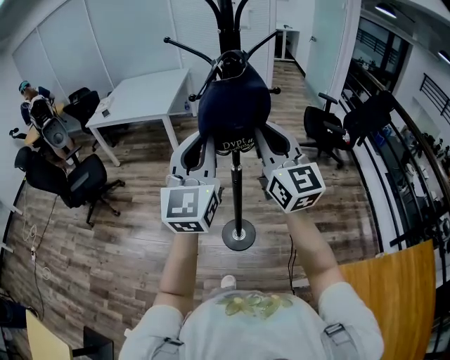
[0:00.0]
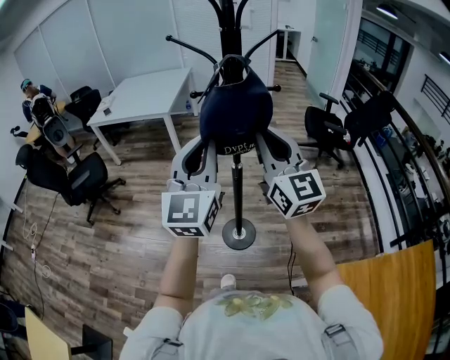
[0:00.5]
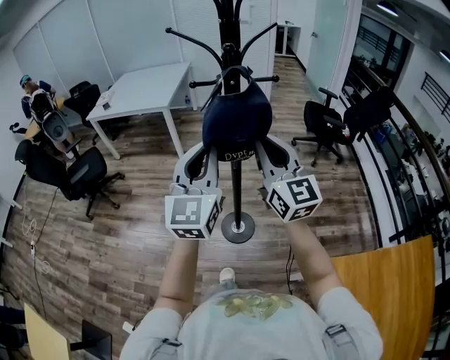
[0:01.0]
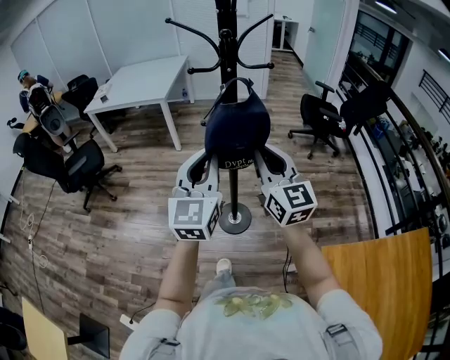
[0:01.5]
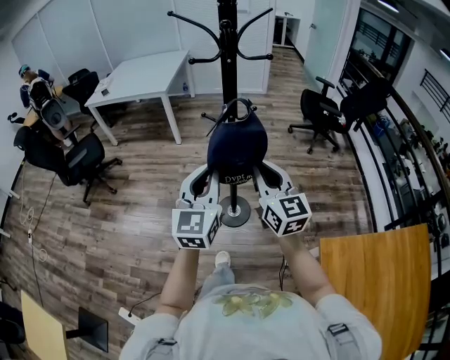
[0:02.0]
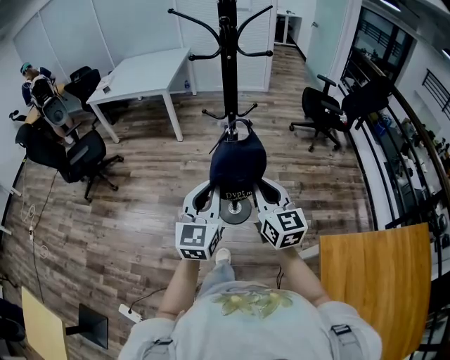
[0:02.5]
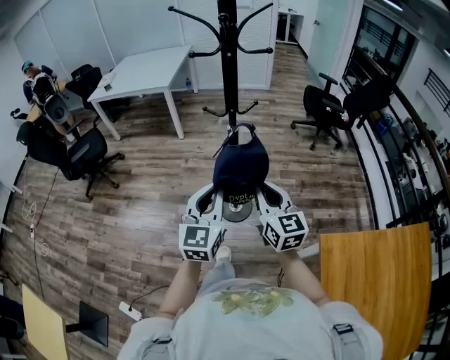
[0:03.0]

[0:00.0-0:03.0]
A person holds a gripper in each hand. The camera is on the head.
0:00.0 to 0:01.5: The two grippers go roughly 15 cm downward and backward.
0:01.5 to 0:03.0: Both grippers move downward and backward, approximately 15 cm.

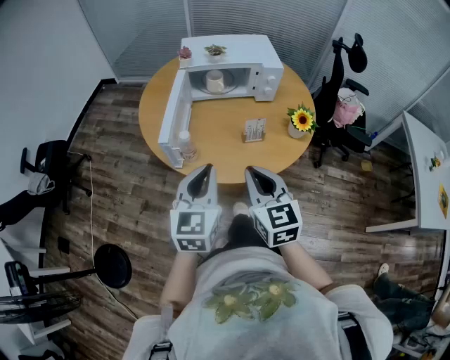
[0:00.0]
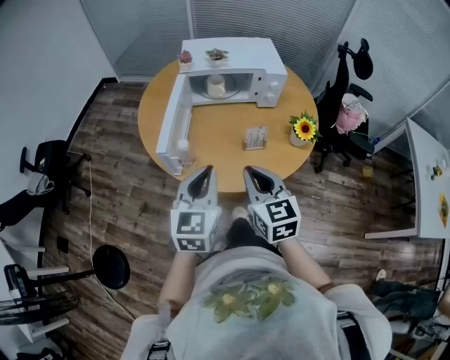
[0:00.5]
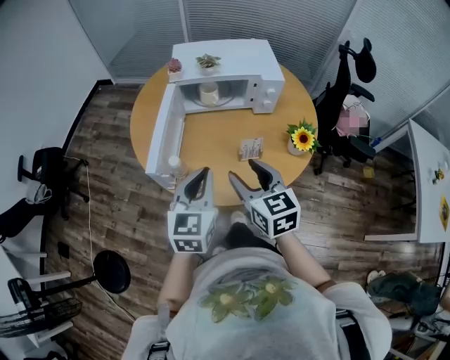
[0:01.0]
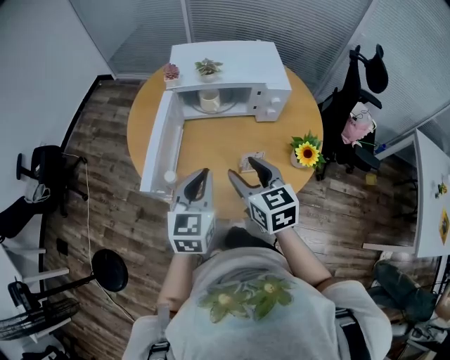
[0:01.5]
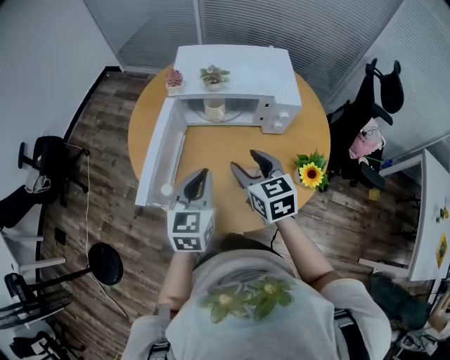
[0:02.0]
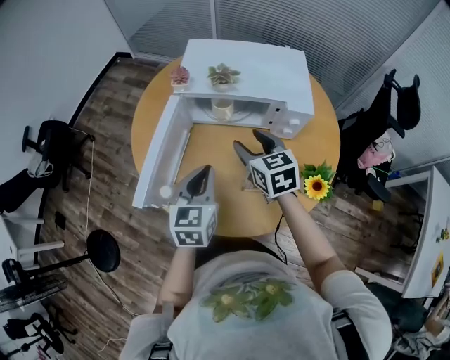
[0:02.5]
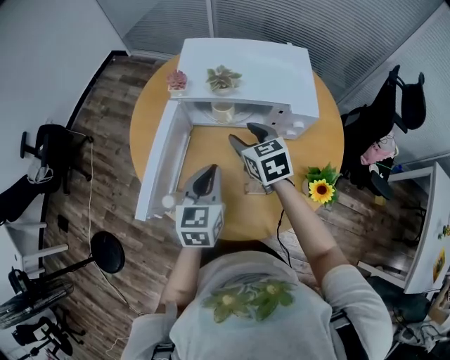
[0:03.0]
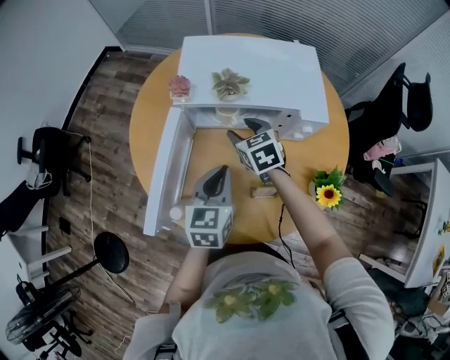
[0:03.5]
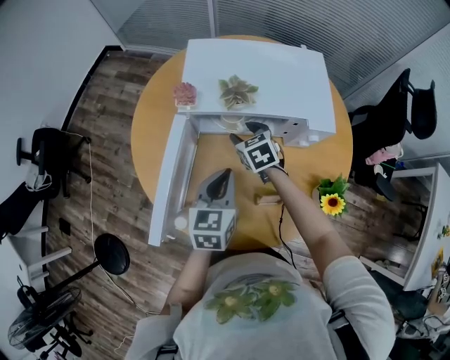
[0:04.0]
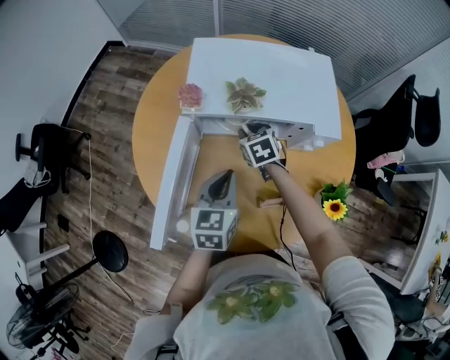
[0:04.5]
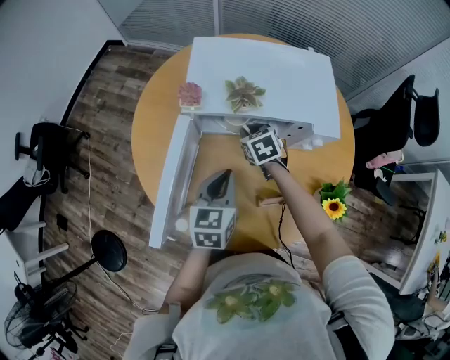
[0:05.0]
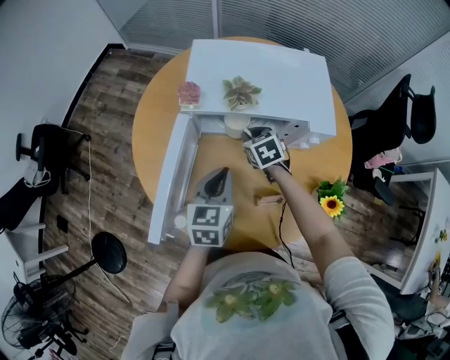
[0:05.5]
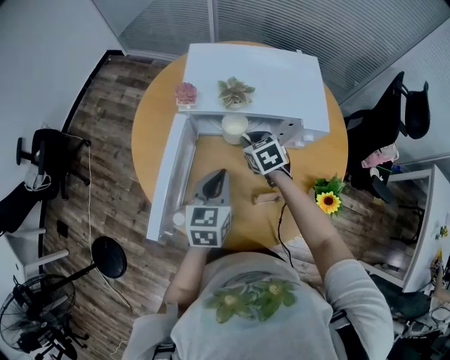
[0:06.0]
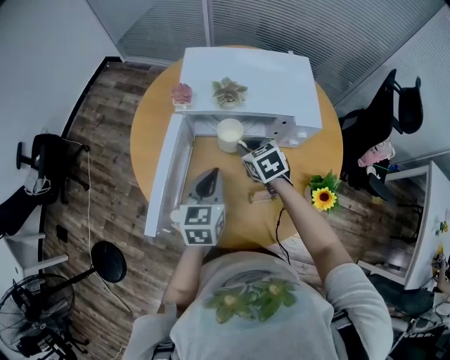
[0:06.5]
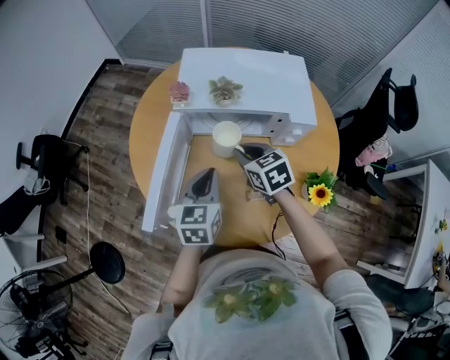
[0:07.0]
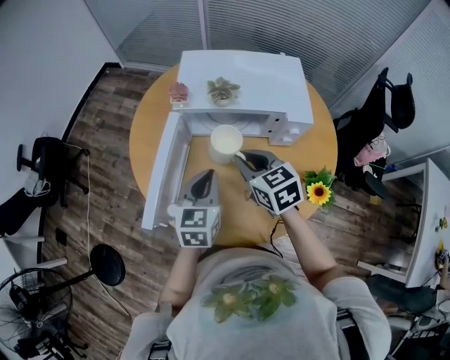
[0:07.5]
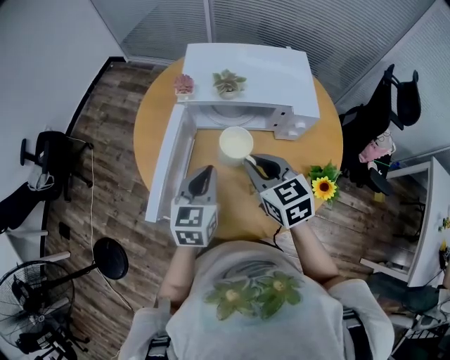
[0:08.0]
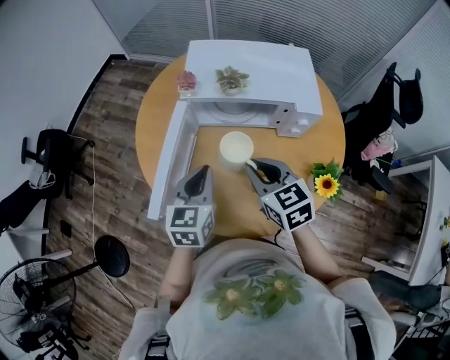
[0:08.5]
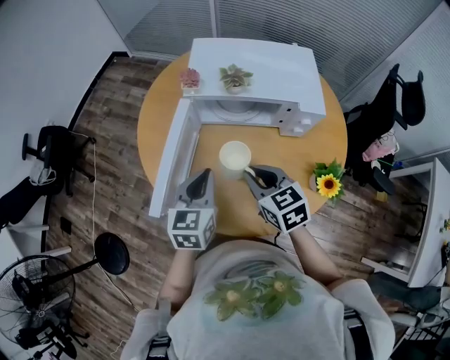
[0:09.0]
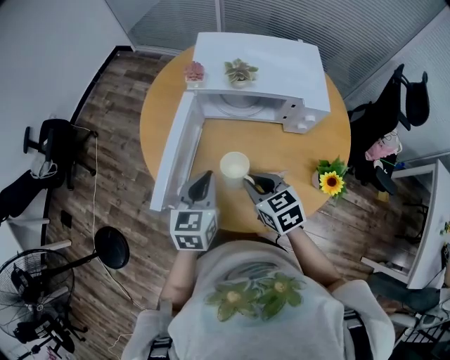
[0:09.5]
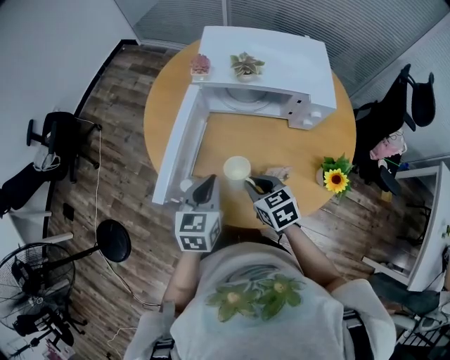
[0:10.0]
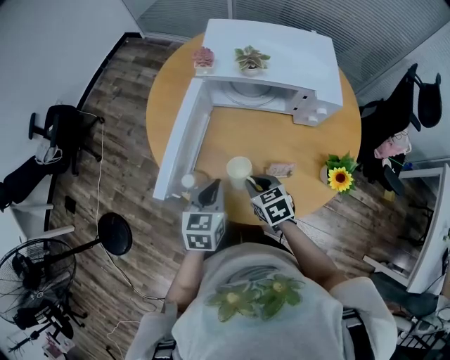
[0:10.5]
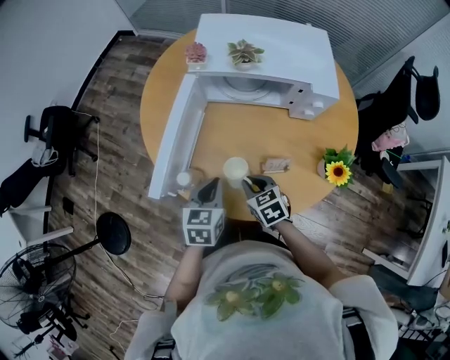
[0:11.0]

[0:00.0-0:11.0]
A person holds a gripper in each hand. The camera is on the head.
0:00.0 to 0:02.0: Both grippers travel together forward, approximately 25 cm. The right gripper opens.
0:02.0 to 0:03.5: The right gripper travels forward and downward by about 20 cm, while the left gripper shifts approximately 10 cm forward.
0:03.5 to 0:05.5: The right gripper travels downward by some 5 cm, and closes.
0:05.5 to 0:07.5: The right gripper moves upward and backward, roughly 20 cm, while the left gripper ends up roughly 5 cm from where it was.
0:07.5 to 0:09.0: The right gripper heads backward, covering about 5 cm.
0:09.0 to 0:11.0: The right gripper is displaced downward by about 15 cm. The left gripper moves downward and backward, roughly 10 cm.

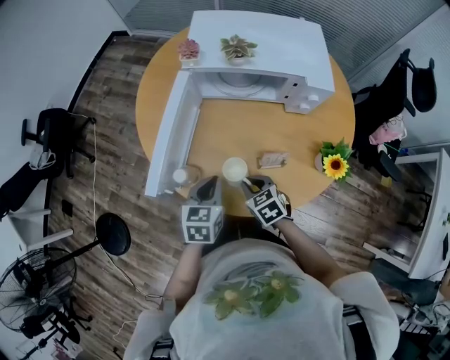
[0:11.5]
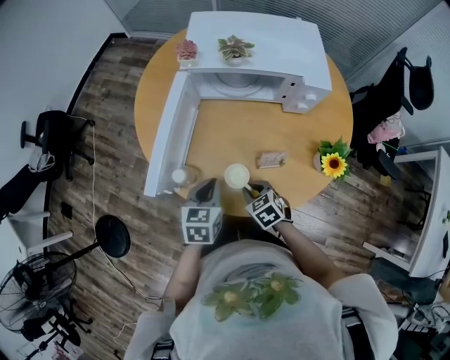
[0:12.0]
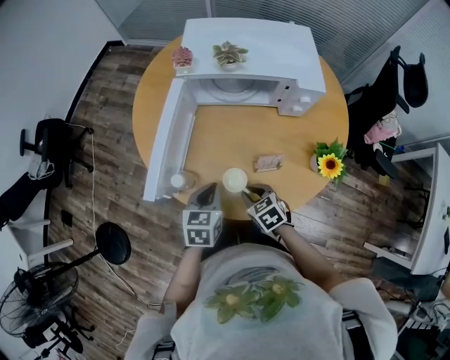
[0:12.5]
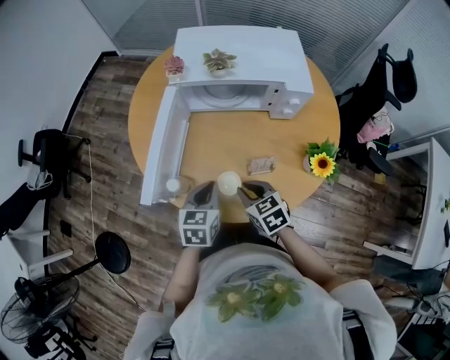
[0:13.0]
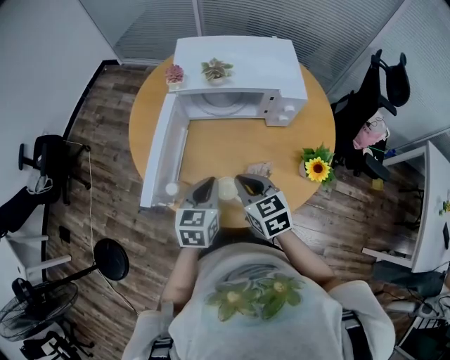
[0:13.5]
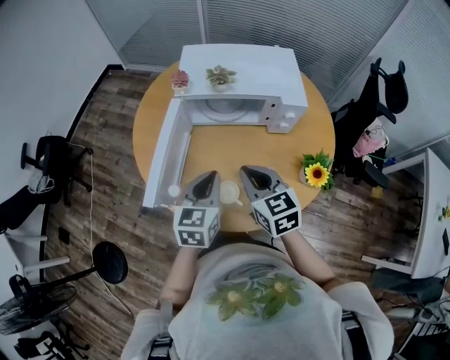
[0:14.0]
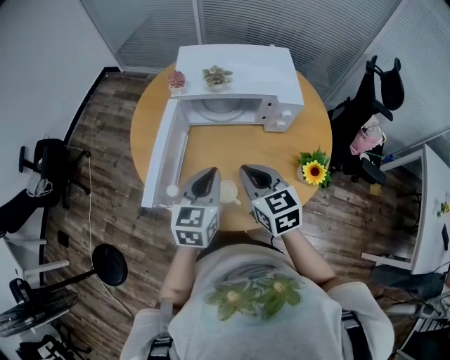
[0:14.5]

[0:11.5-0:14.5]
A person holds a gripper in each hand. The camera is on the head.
0:11.5 to 0:13.0: The right gripper shifts some 5 cm upward.
0:13.0 to 0:14.5: Both grippers move upward, some 15 cm. The right gripper turns by some 20 degrees.

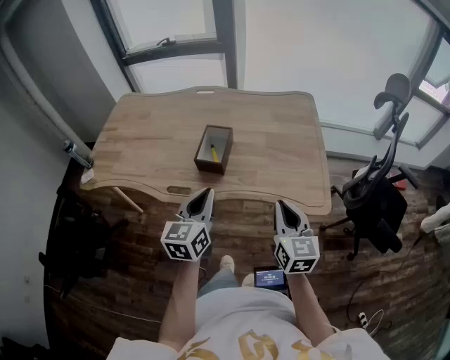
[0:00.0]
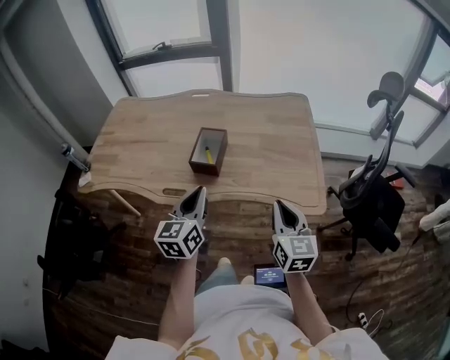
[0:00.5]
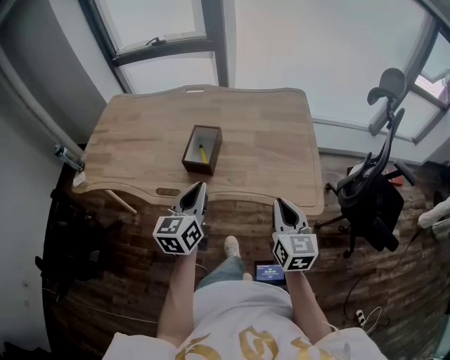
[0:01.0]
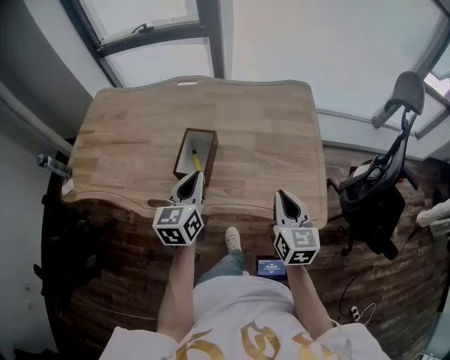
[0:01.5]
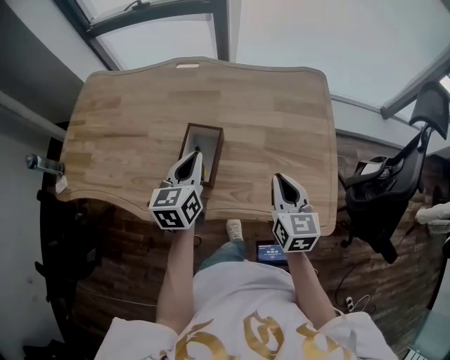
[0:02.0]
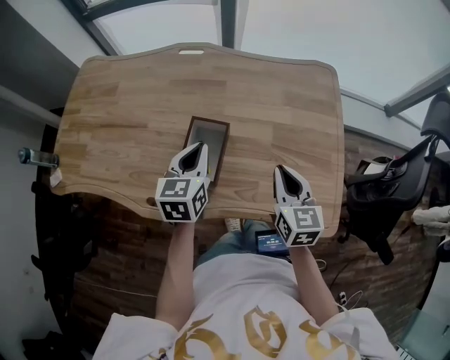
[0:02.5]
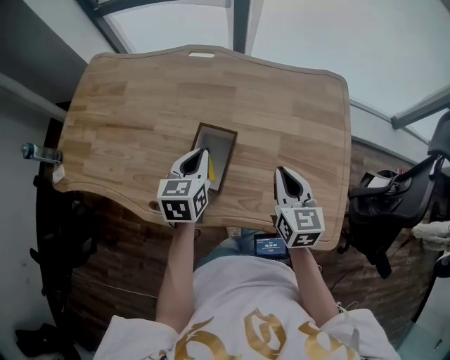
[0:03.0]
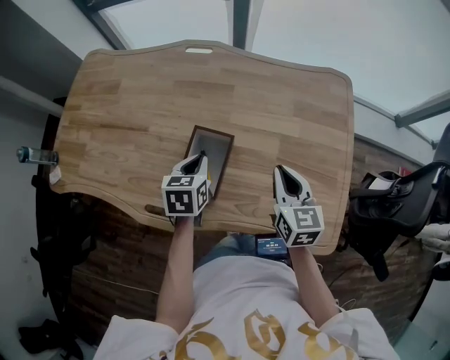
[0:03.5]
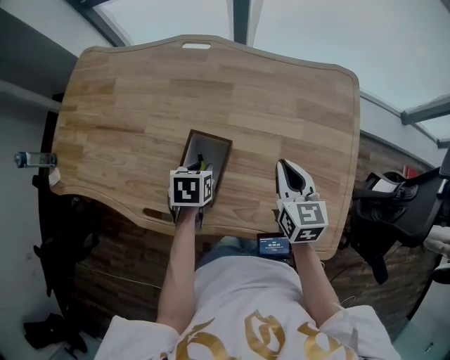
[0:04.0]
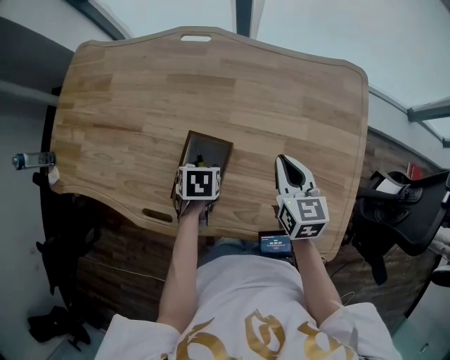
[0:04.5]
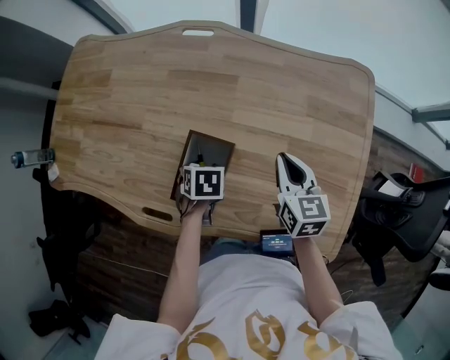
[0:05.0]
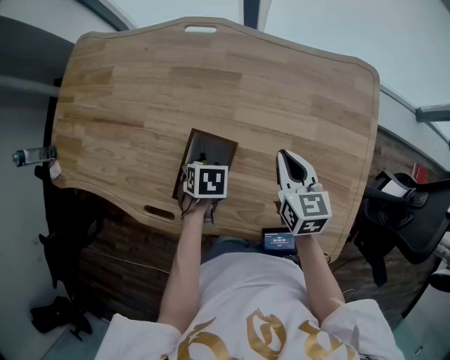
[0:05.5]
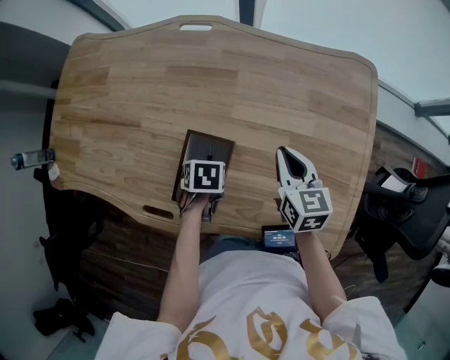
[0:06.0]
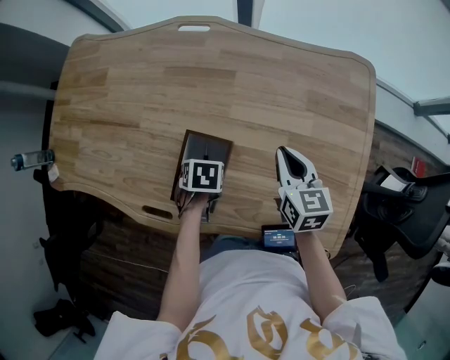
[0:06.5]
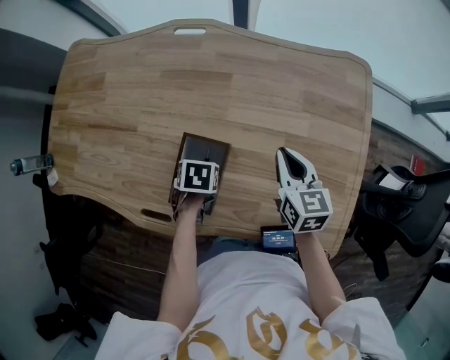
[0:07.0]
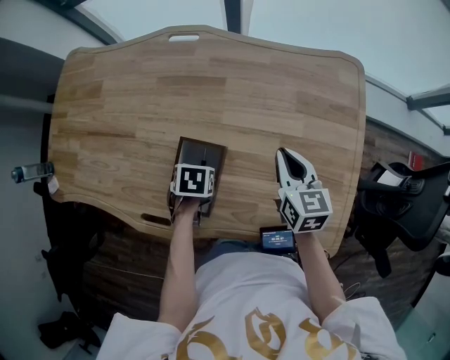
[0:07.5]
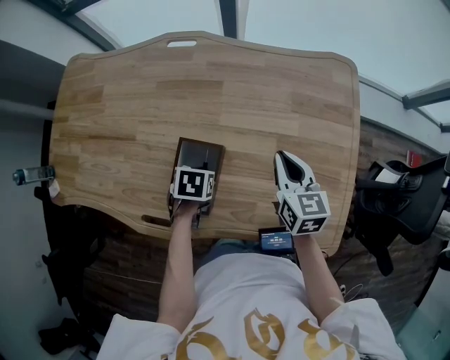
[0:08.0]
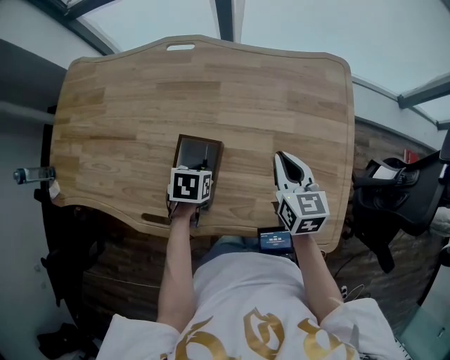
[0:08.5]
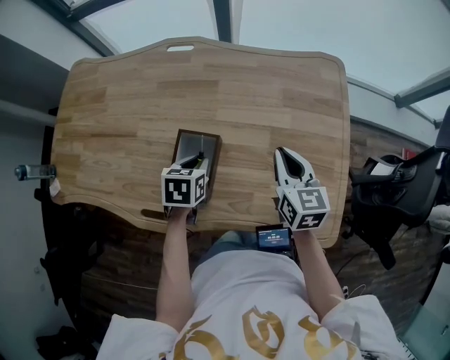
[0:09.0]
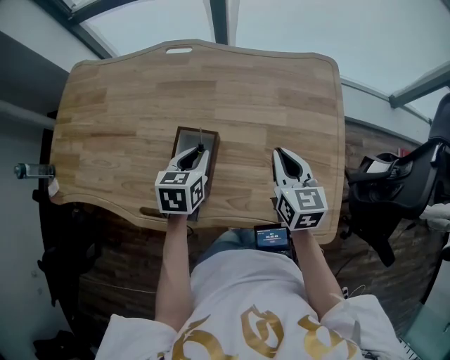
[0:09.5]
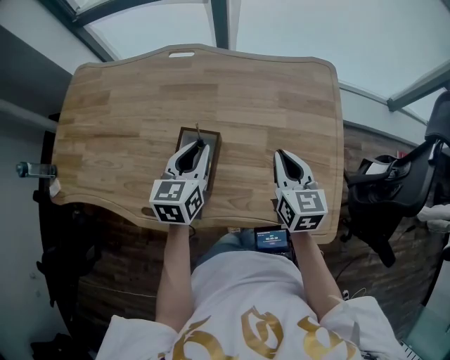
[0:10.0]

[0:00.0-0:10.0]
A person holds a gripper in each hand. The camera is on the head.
0:00.0 to 0:02.0: The two grippers go roughly 25 cm forward.
0:02.0 to 0:04.0: The right gripper shifts some 15 cm forward and downward. The left gripper travels downward by roughly 15 cm, tilts its fingers roughly 40 degrees downward, and opens its fingers.
0:04.0 to 0:06.0: The left gripper travels downward by about 5 cm, while the right gripper changes place by about 5 cm.
0:06.0 to 0:08.0: The left gripper closes.
0:08.0 to 0:10.0: The right gripper changes place by approximately 10 cm. Meanwhile the left gripper is displaced upward by approximately 20 cm, and tilts its fingers roughly 50 degrees upward.
